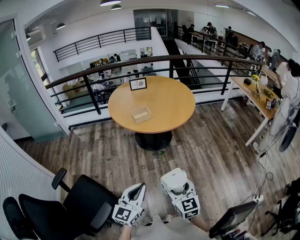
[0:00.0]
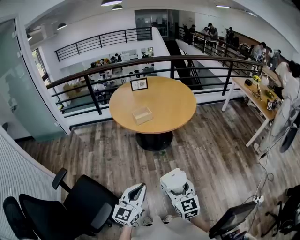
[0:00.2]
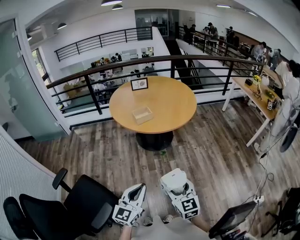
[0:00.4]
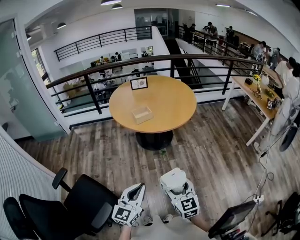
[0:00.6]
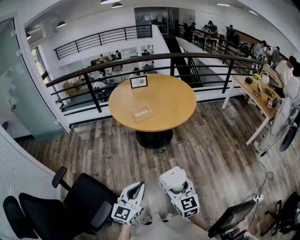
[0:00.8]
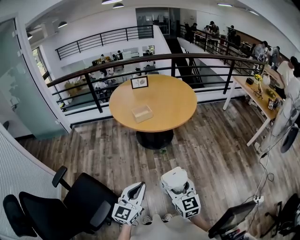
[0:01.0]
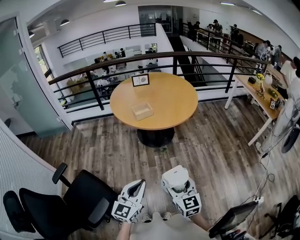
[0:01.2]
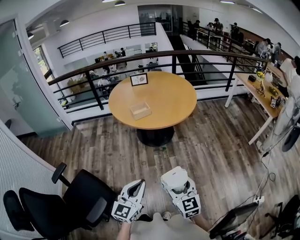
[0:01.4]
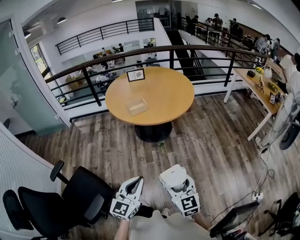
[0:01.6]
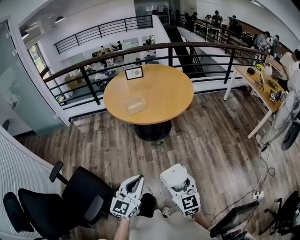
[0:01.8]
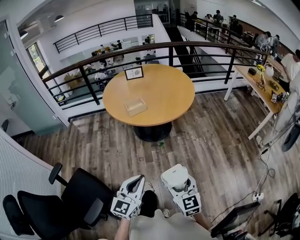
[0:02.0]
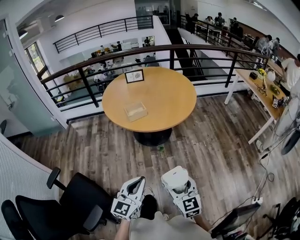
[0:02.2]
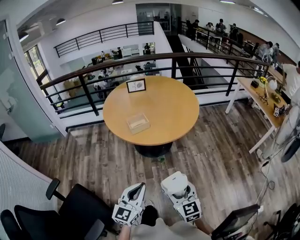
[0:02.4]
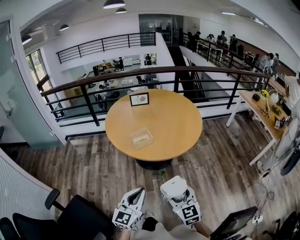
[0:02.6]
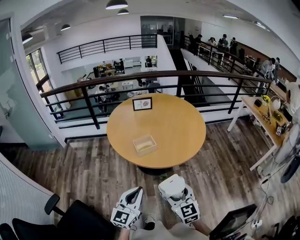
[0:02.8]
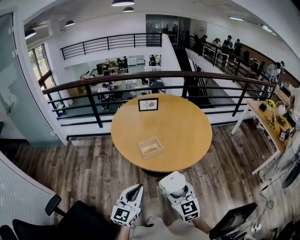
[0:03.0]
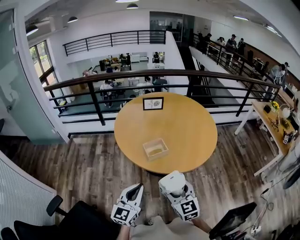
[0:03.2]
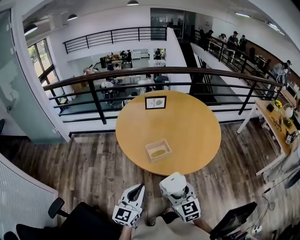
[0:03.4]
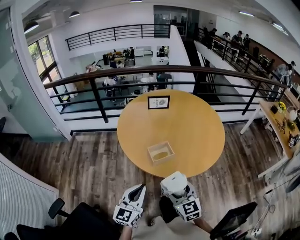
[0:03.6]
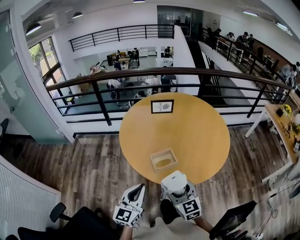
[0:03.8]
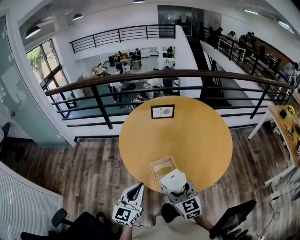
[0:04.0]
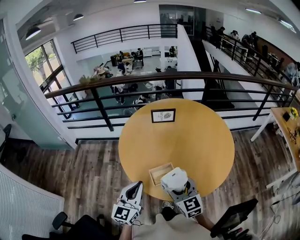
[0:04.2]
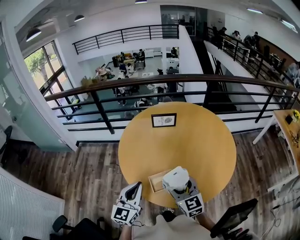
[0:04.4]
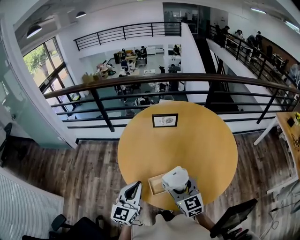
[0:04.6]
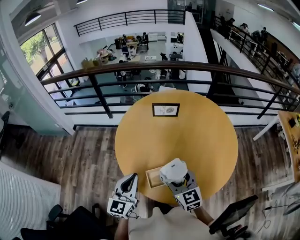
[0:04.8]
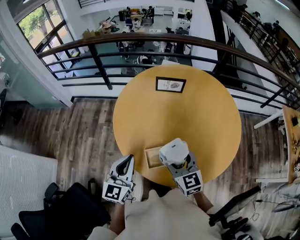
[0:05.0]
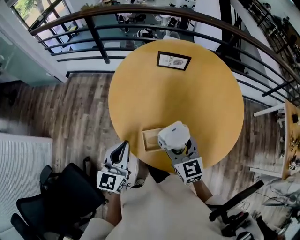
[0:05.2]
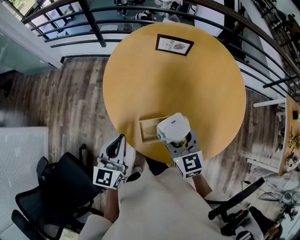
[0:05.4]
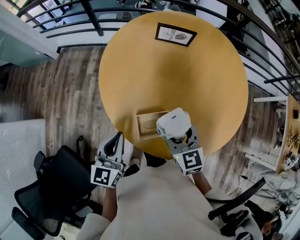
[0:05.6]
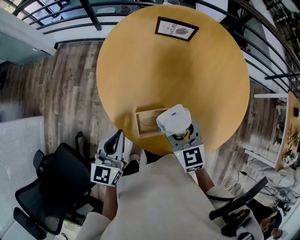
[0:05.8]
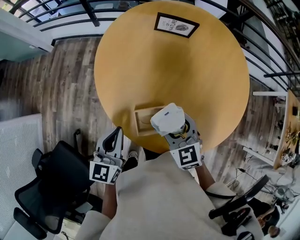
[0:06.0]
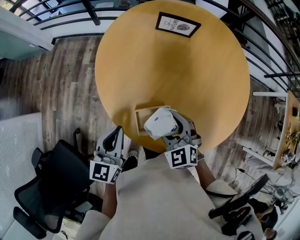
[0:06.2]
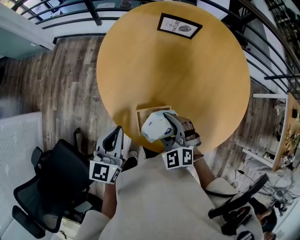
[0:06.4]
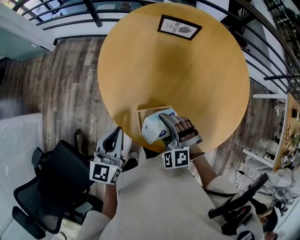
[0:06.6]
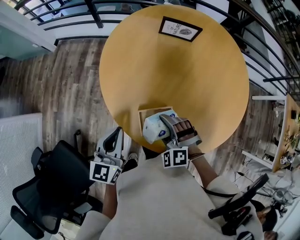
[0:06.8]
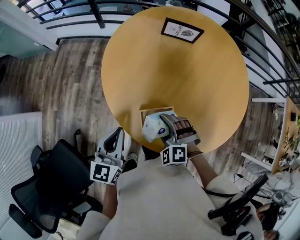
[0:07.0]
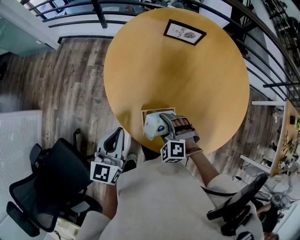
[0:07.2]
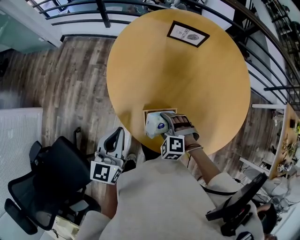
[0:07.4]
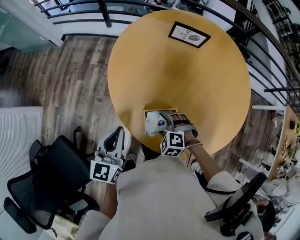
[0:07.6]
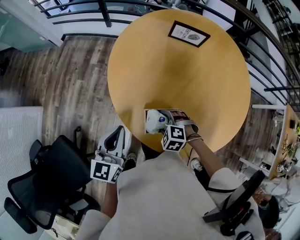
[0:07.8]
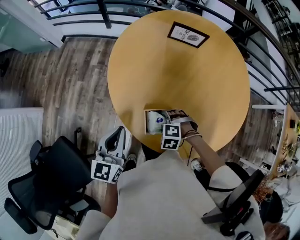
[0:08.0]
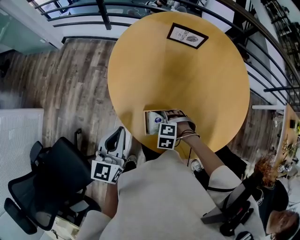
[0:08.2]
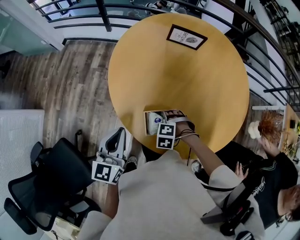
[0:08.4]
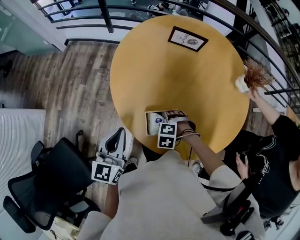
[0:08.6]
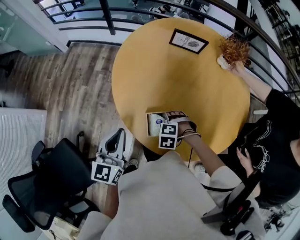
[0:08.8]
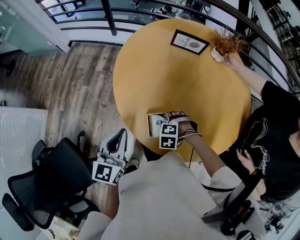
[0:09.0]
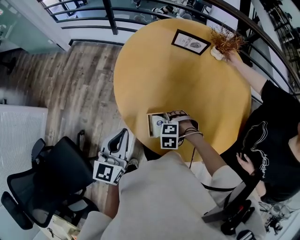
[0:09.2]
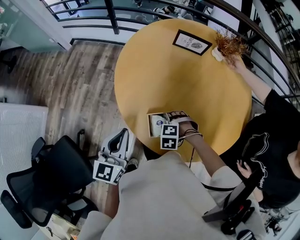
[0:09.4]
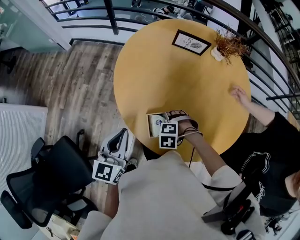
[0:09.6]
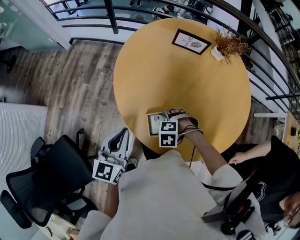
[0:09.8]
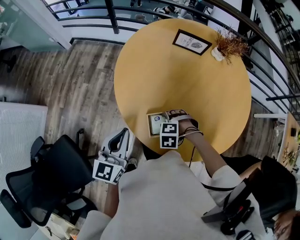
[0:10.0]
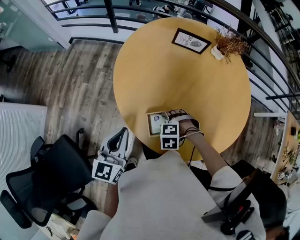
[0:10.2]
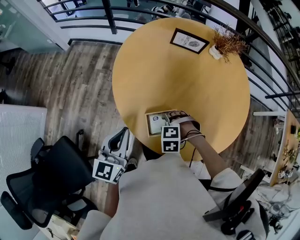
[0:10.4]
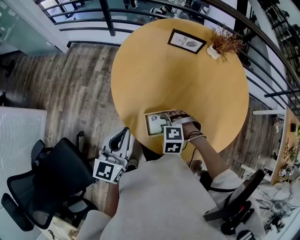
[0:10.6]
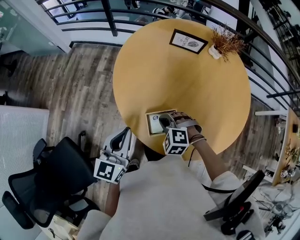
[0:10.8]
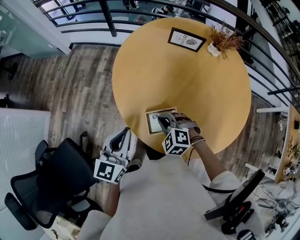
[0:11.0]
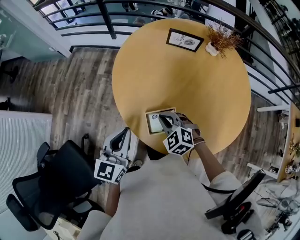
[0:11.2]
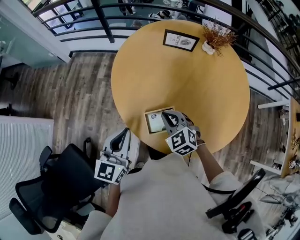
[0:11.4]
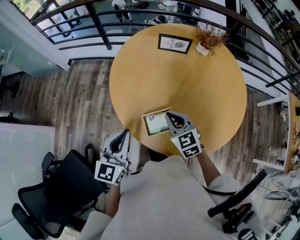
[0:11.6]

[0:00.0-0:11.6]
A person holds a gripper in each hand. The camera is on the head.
0:00.0 to 0:01.4: There are only small adjustments of the grippers.
0:01.4 to 0:02.8: Both grippers move forward, roughly 20 cm.
0:02.8 to 0:04.4: Both grippers travel together forward, some 30 cm.
0:04.4 to 0:05.8: Both grippers move downward, approximately 5 cm. The left gripper changes its angle by about 20 degrees. The right gripper turns by approximately 20 degrees.
0:05.8 to 0:07.2: The right gripper travels downward and to the left by some 10 cm, and twists about 60 degrees counterclockwise, seen from behind.
0:07.2 to 0:08.8: The right gripper moves downward, some 5 cm, and changes its angle by approximately 30 degrees.
0:08.8 to 0:10.2: The grippers move only a little.
0:10.2 to 0:11.6: The right gripper heads upward, covering about 15 cm, tilts its fingers some 50 degrees upward, and closes up.

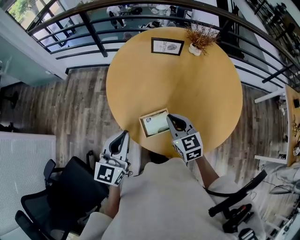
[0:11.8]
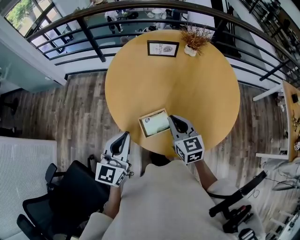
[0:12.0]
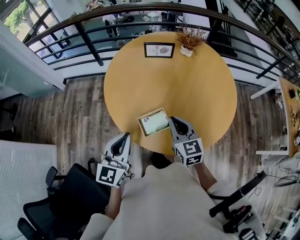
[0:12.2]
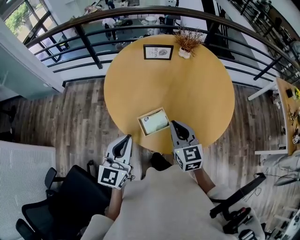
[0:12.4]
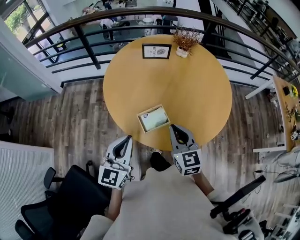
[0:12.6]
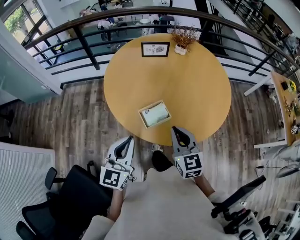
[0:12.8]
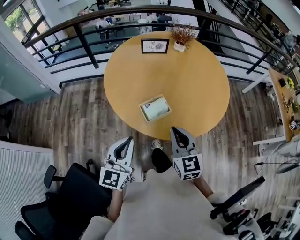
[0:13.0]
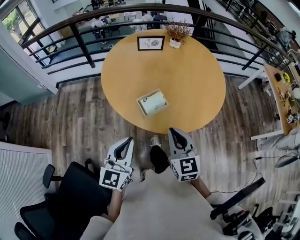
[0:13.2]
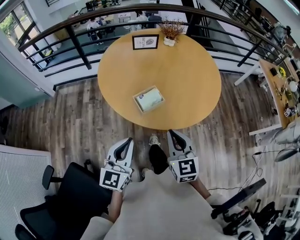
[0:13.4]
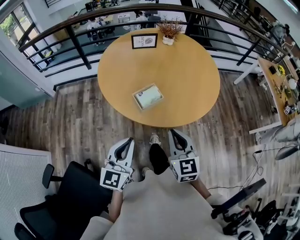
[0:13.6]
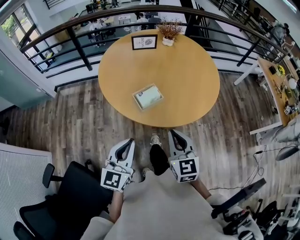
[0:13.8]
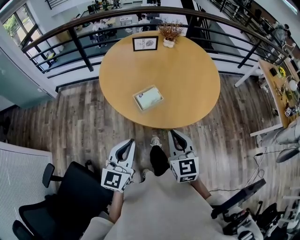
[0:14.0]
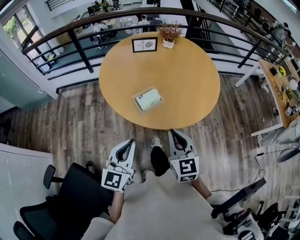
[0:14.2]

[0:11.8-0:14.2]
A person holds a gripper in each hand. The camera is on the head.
0:11.8 to 0:13.0: The left gripper travels backward by some 10 cm, while the right gripper shifts approximately 15 cm backward, and swivels roughly 20 degrees.
0:13.0 to 0:14.2: The two grippers go about 5 cm backward.

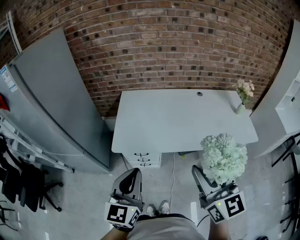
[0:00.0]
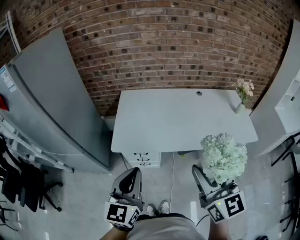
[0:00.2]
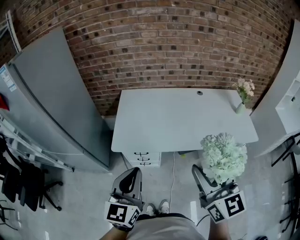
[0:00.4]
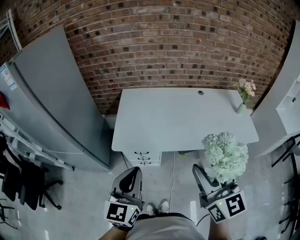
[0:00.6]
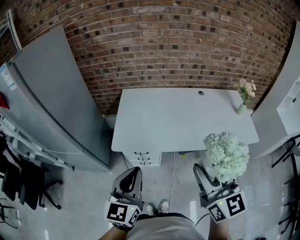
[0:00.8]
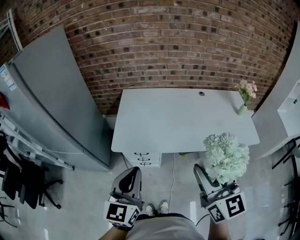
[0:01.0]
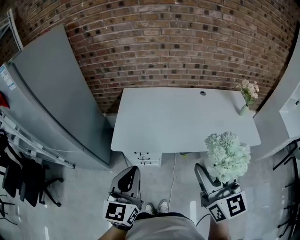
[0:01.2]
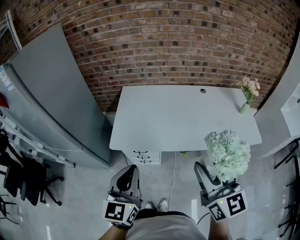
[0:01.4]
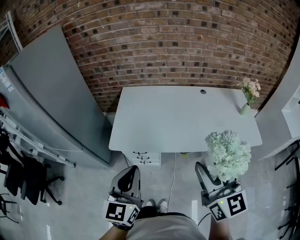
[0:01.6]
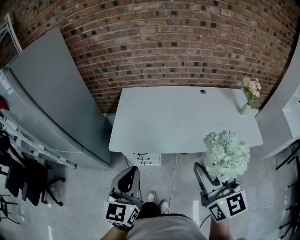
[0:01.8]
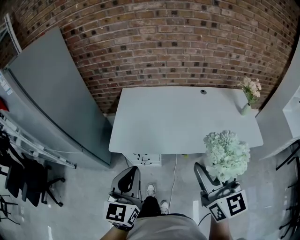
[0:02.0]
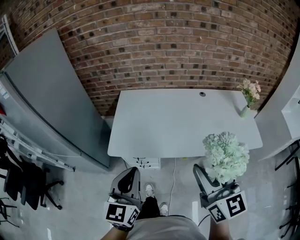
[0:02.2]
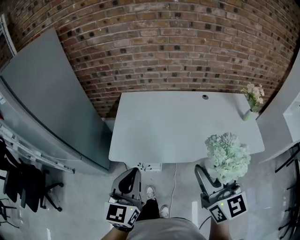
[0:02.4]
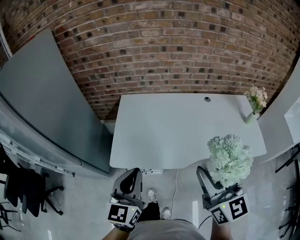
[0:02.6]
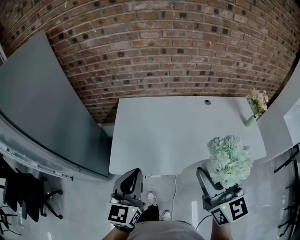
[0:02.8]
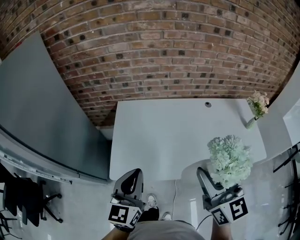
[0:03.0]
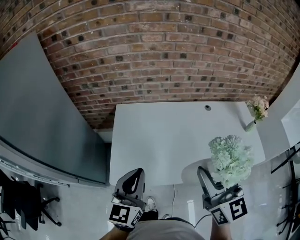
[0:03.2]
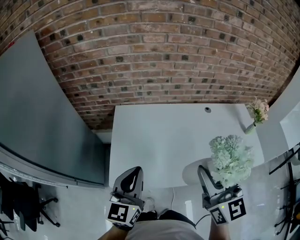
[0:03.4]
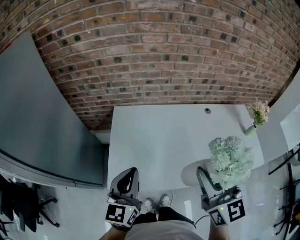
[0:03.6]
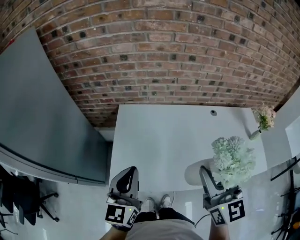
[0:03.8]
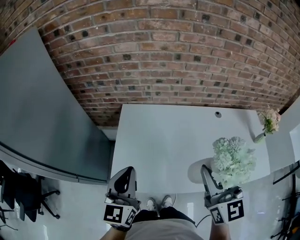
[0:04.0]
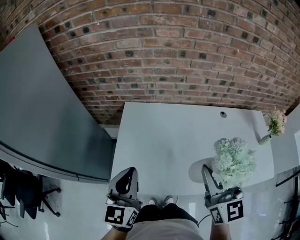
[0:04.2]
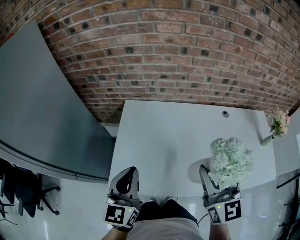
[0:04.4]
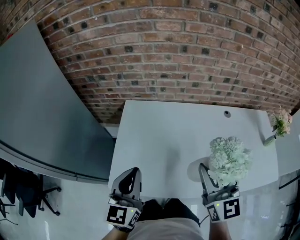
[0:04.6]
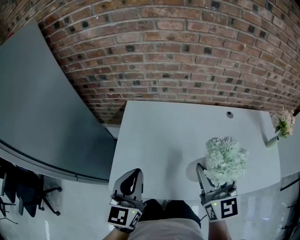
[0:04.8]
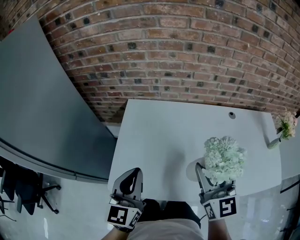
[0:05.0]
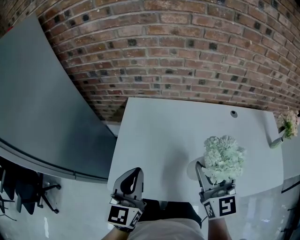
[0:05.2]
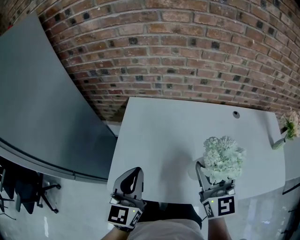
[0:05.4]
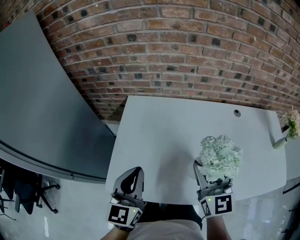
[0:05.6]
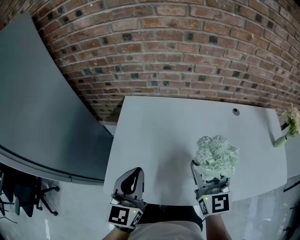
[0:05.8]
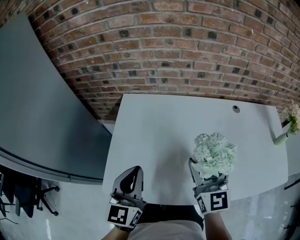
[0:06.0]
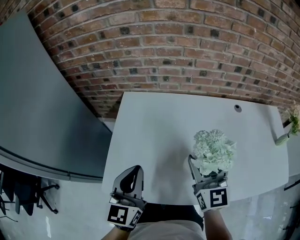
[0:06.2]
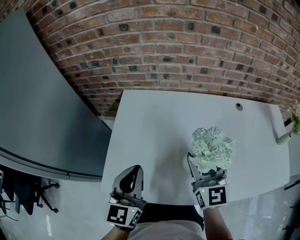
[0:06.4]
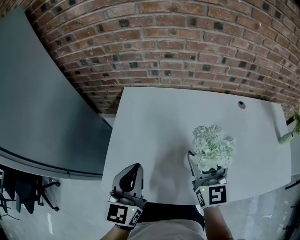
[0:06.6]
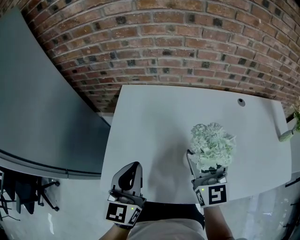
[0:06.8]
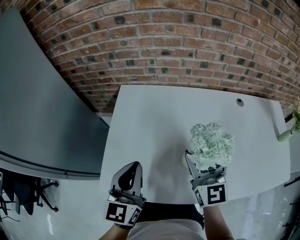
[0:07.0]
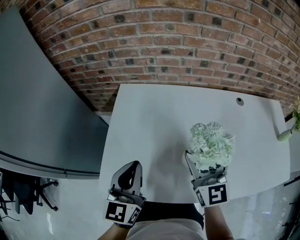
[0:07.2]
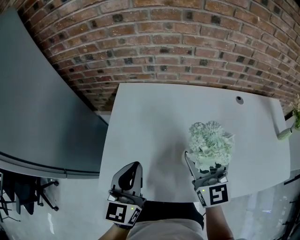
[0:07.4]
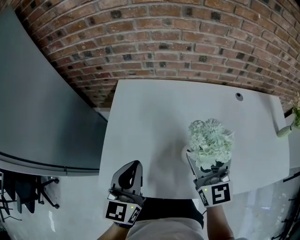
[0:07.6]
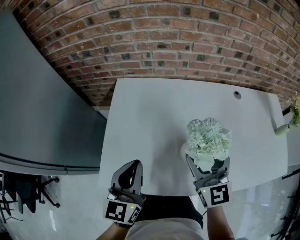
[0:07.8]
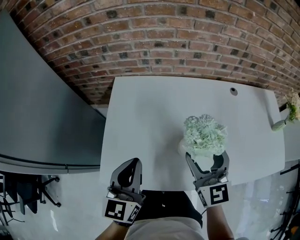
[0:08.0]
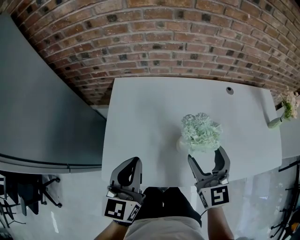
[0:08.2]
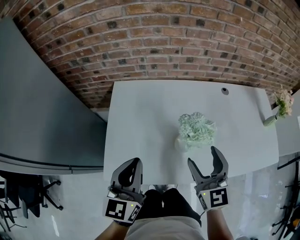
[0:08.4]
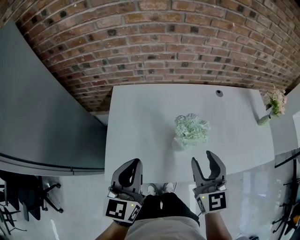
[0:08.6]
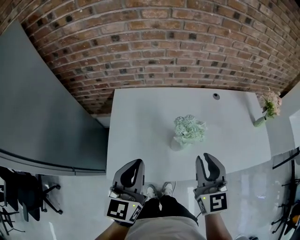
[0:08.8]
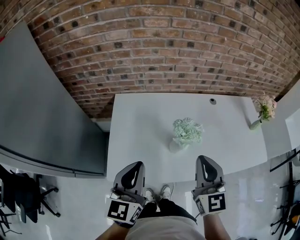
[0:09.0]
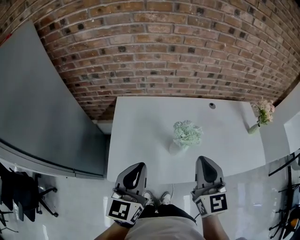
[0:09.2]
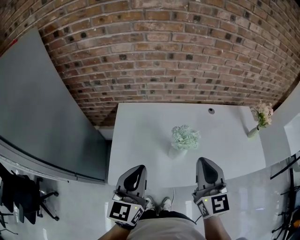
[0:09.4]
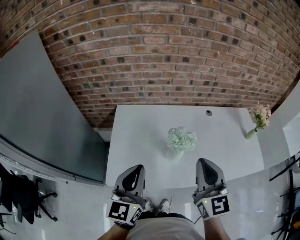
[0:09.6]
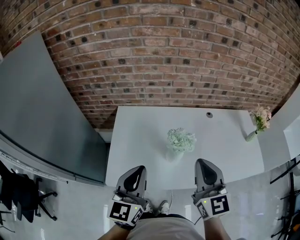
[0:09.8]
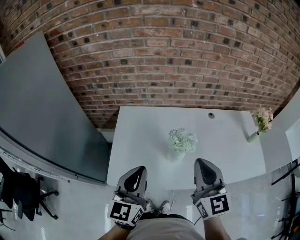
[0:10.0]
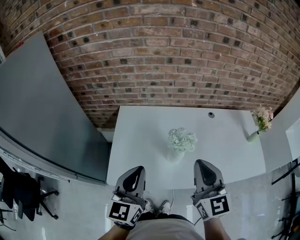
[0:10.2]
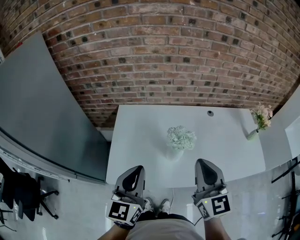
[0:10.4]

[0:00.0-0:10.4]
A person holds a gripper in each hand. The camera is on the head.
0:00.0 to 0:01.4: The grippers move only a little.
0:01.4 to 0:03.0: Both grippers move forward, roughly 20 cm.
0:03.0 to 0:04.4: The right gripper heads forward and downward, covering roughly 15 cm; the left gripper travels forward by about 10 cm.
0:04.4 to 0:06.0: The right gripper shifts roughly 15 cm downward and forward. The left gripper shifts approximately 10 cm downward.
0:06.0 to 0:07.4: The grippers make only small movements.
0:07.4 to 0:09.0: Both grippers move upward and backward, approximately 20 cm. The right gripper closes its fingers.
0:09.0 to 0:10.4: The right gripper goes approximately 5 cm upward.
